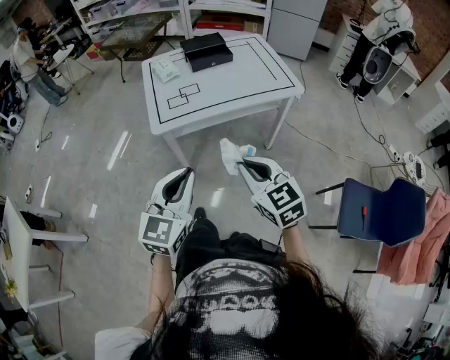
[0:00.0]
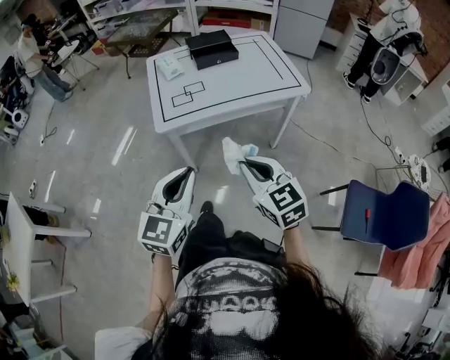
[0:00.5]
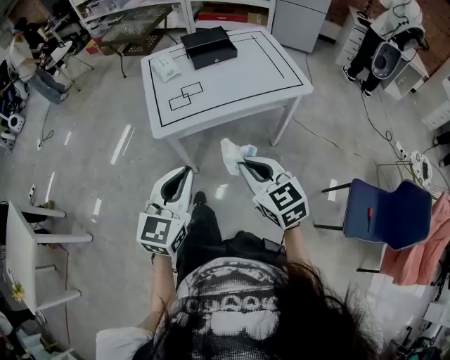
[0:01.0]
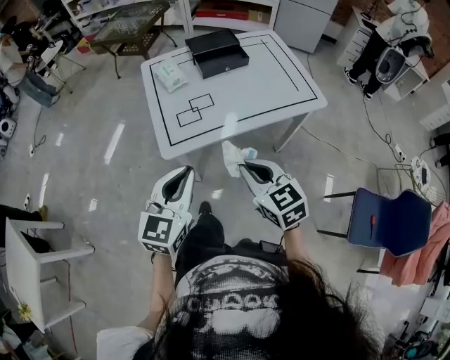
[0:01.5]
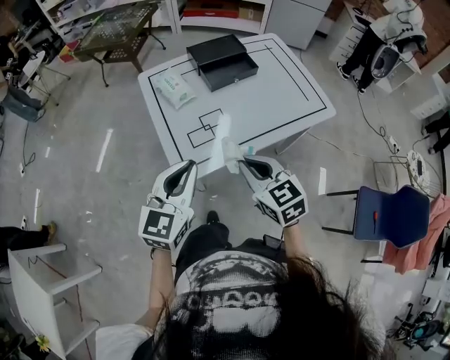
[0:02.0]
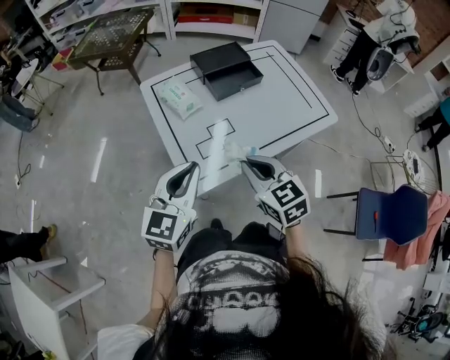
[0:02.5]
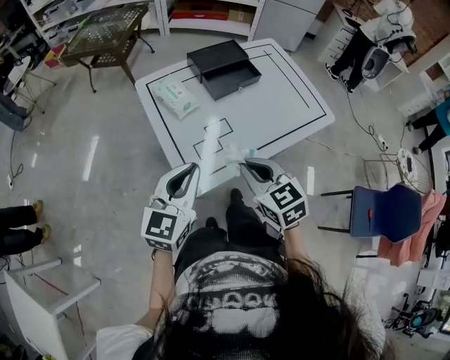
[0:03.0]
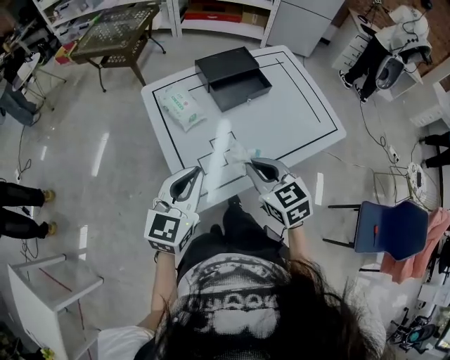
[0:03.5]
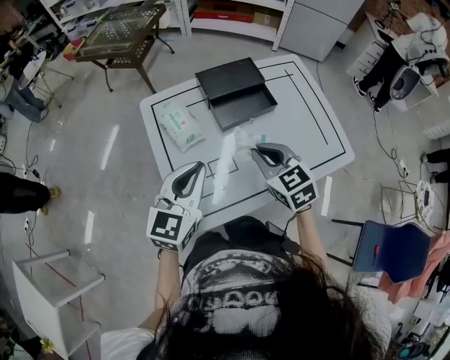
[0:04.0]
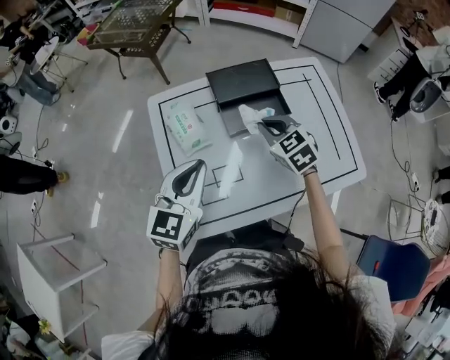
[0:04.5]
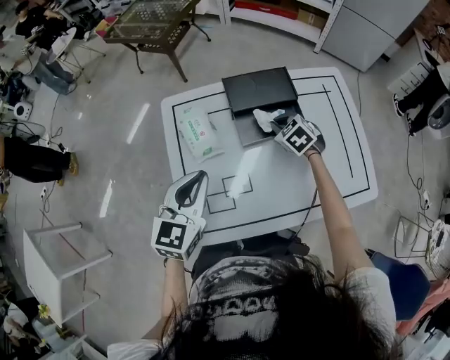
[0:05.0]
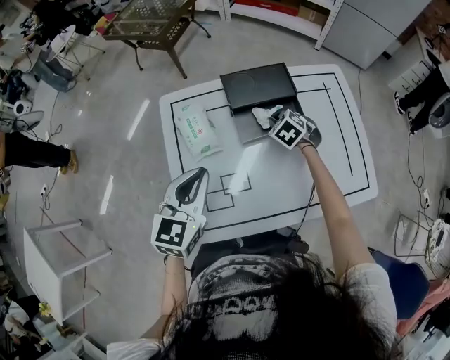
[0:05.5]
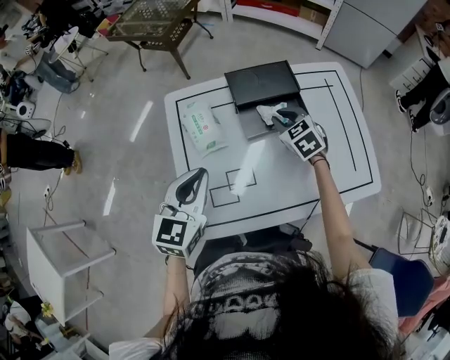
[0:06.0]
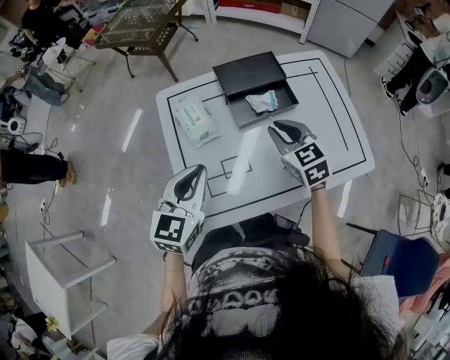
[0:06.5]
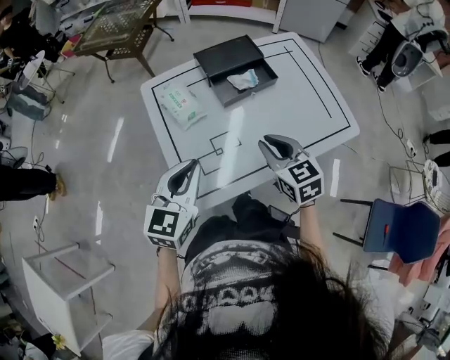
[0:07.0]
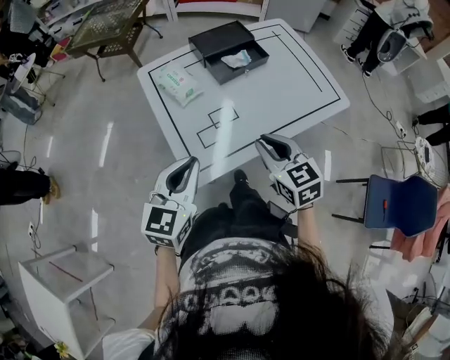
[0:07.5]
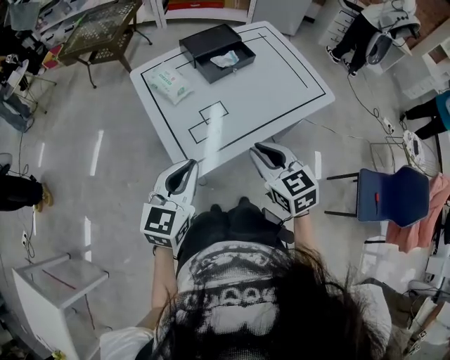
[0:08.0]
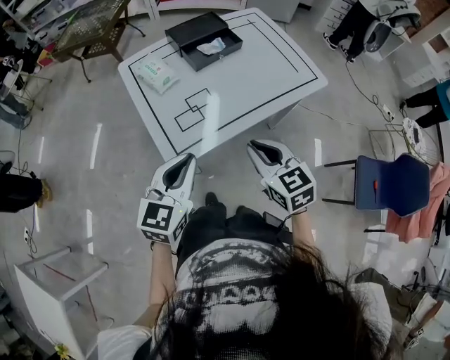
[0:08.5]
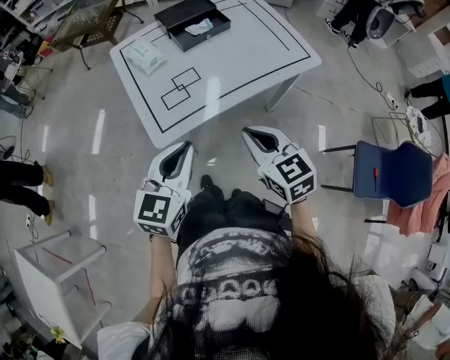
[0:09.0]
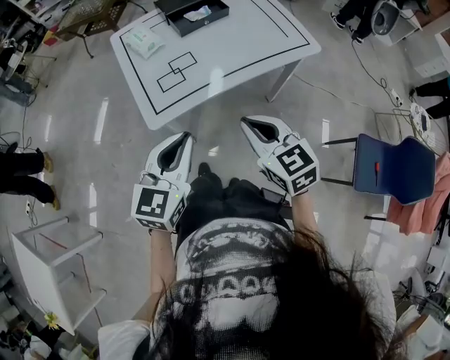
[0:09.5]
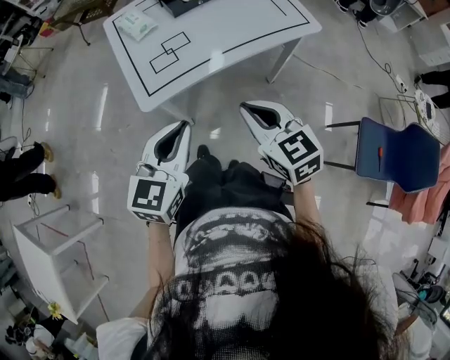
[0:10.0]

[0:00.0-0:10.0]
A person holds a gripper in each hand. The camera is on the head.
0:00.0 to 0:02.0: Both grippers travel together forward and to the left, some 35 cm.
0:02.0 to 0:04.0: The two grippers go approximately 25 cm forward.
0:04.0 to 0:06.0: The right gripper travels forward and downward by roughly 20 cm. The left gripper is displaced forward by about 5 cm.
0:06.0 to 0:08.0: The left gripper travels backward by about 25 cm, and turns by roughly 20 degrees, while the right gripper heads backward, covering about 40 cm, and turns by approximately 30 degrees.
0:08.0 to 0:10.0: The left gripper moves to the right and backward, roughly 20 cm; the right gripper moves backward and to the right, approximately 20 cm.

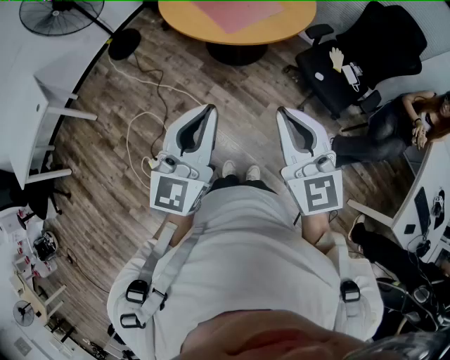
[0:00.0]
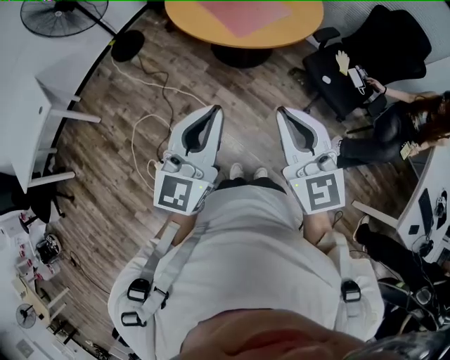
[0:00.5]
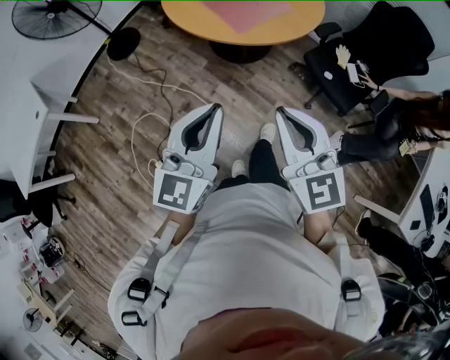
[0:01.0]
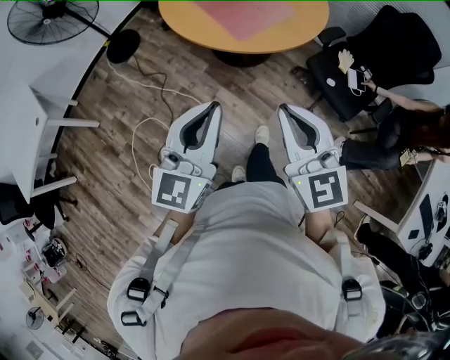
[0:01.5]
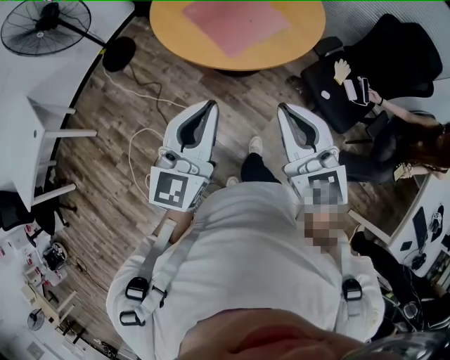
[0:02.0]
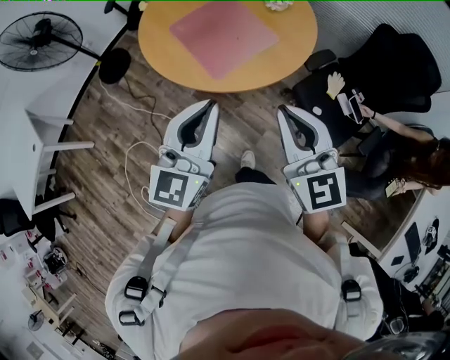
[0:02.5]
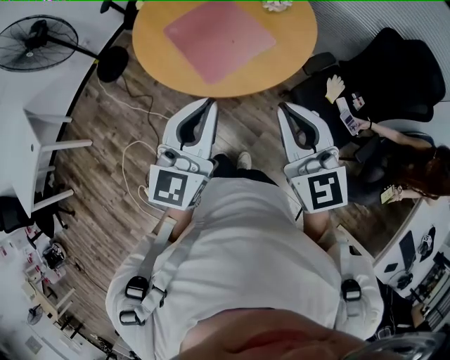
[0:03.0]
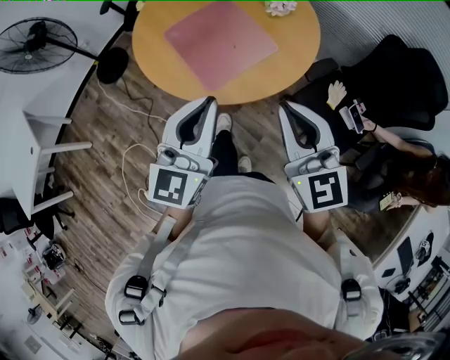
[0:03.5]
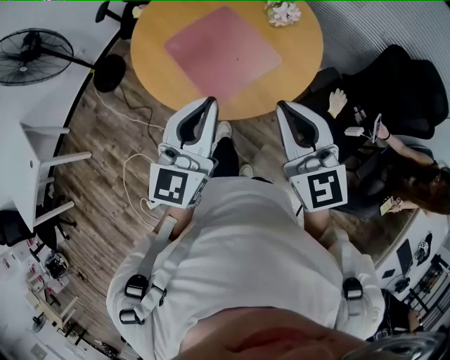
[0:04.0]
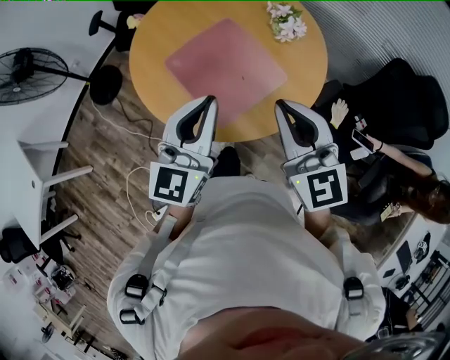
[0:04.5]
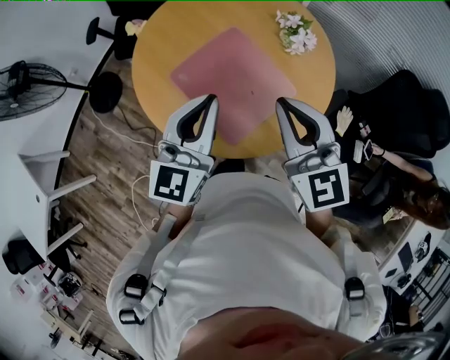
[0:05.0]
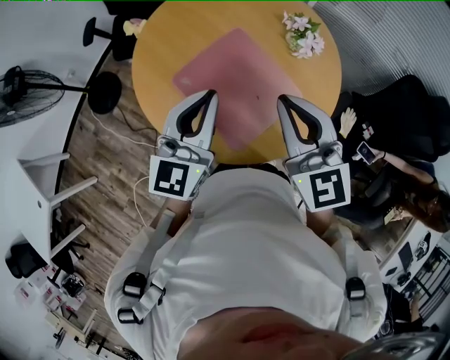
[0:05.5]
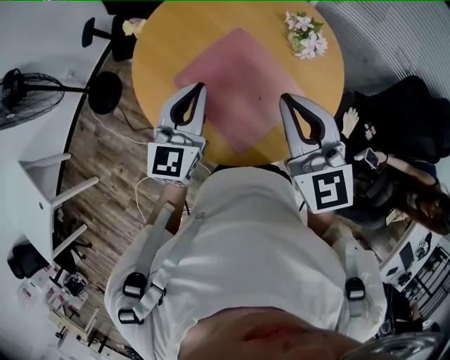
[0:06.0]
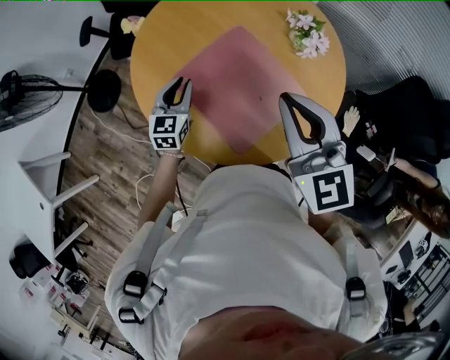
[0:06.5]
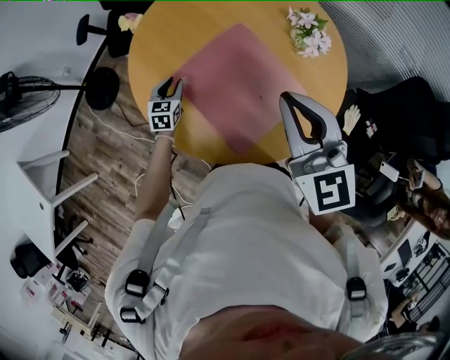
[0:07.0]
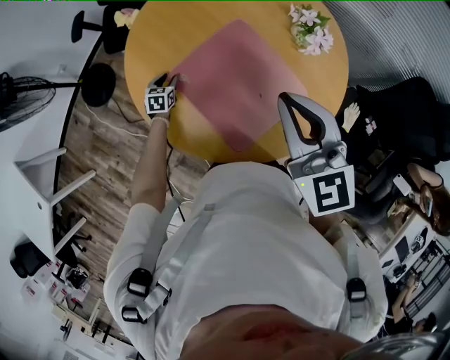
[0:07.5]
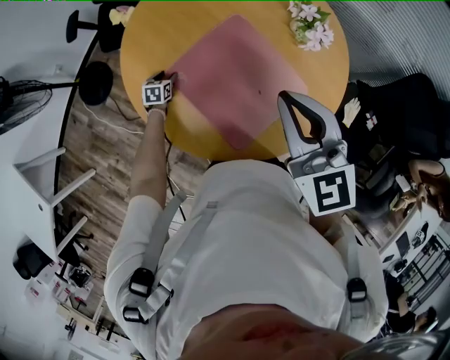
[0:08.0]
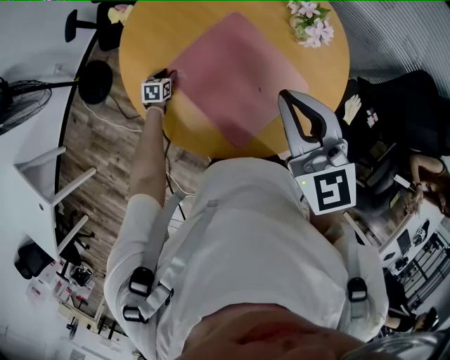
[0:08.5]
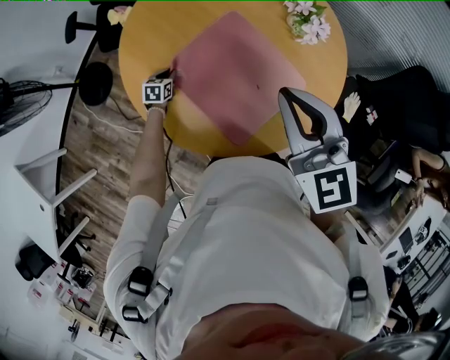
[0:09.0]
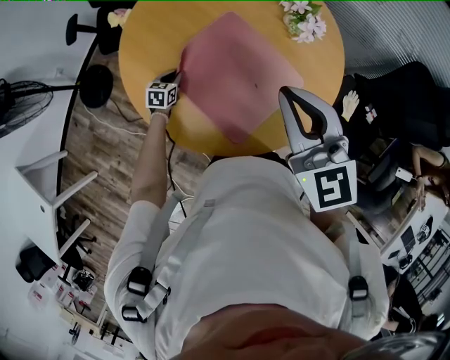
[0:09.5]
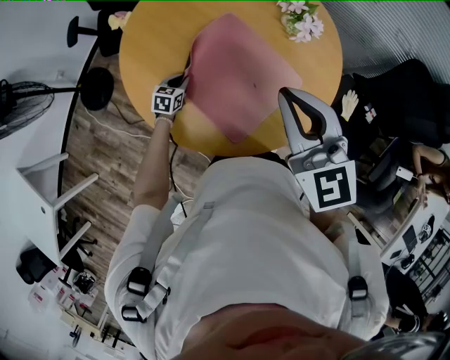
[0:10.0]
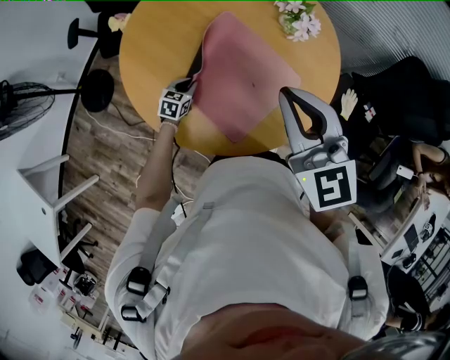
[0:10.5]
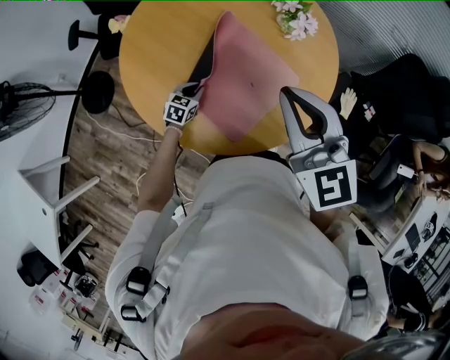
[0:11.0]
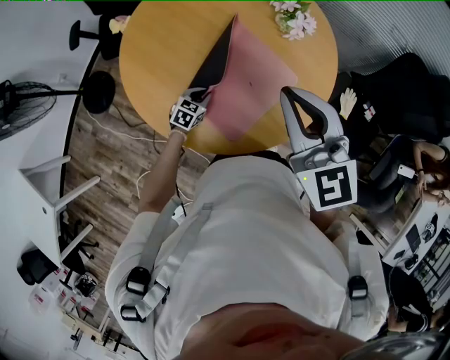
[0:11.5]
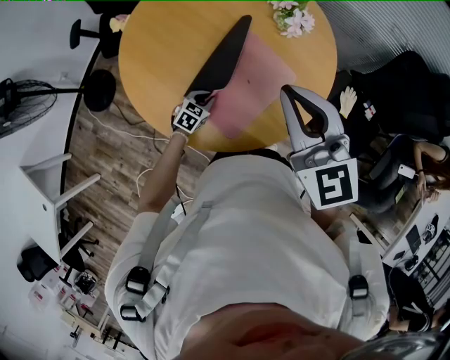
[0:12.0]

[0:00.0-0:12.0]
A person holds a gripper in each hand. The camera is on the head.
0:00.0 to 0:02.0: Both grippers move forward, roughly 20 cm.
0:02.0 to 0:04.0: Both grippers move forward, approximately 25 cm.
0:04.0 to 0:06.0: Both grippers move forward and to the left, about 30 cm.
0:06.0 to 0:08.0: The right gripper shifts by roughly 5 cm, while the left gripper goes some 40 cm downward, angles its fingers downward, by about 50 degrees, and opens its fingers.
0:08.0 to 0:10.0: The left gripper is displaced to the right and upward by some 10 cm, and closes.
0:10.0 to 0:12.0: The left gripper moves to the right and backward, about 15 cm, and changes its angle by about 20 degrees.

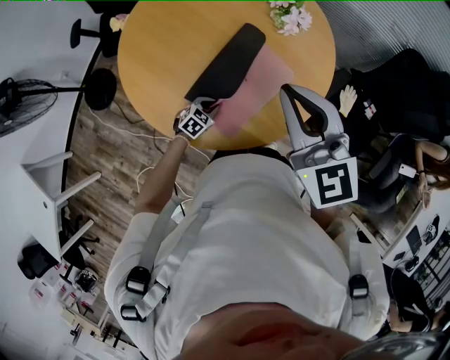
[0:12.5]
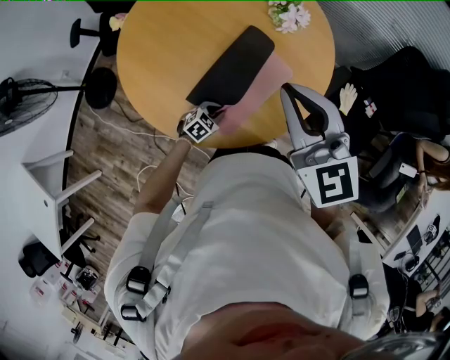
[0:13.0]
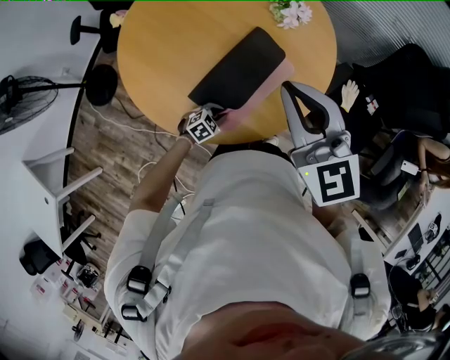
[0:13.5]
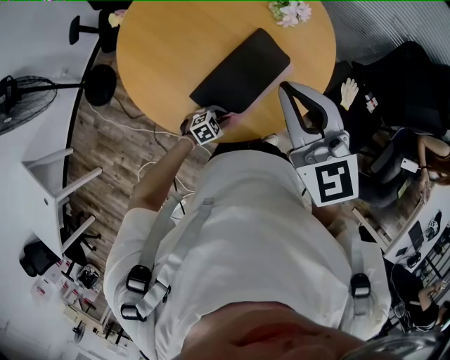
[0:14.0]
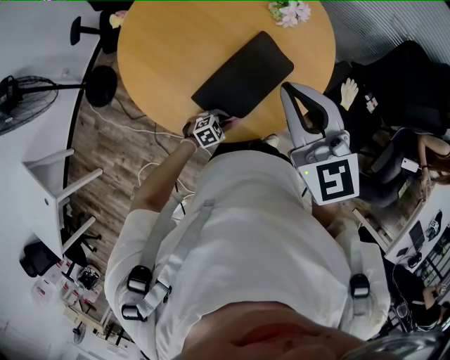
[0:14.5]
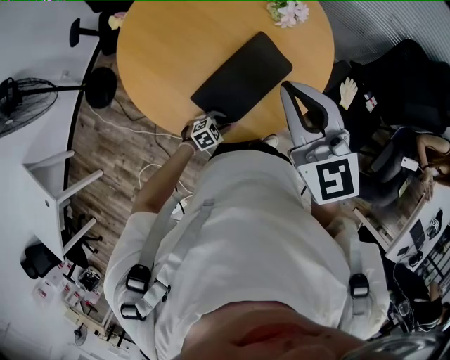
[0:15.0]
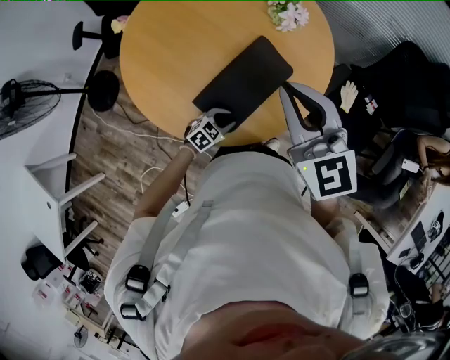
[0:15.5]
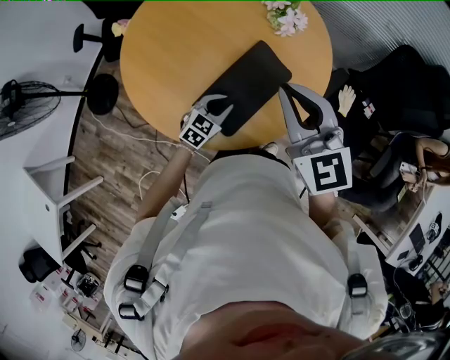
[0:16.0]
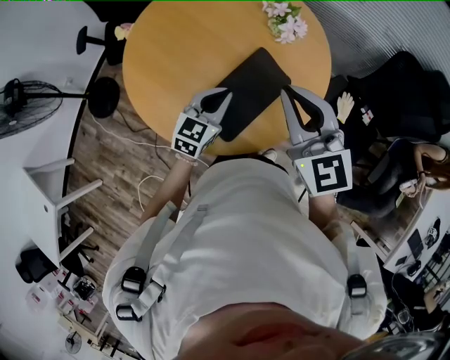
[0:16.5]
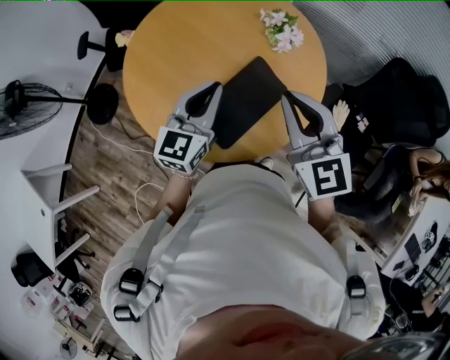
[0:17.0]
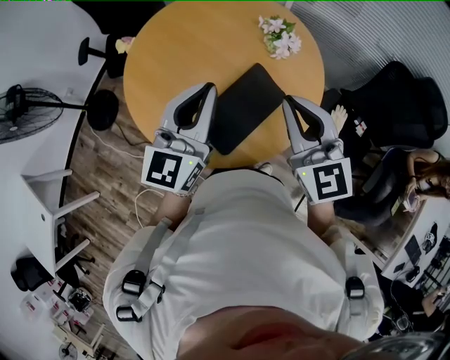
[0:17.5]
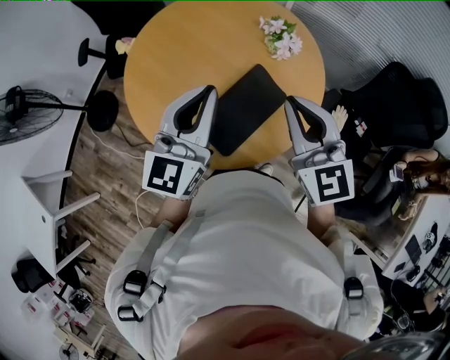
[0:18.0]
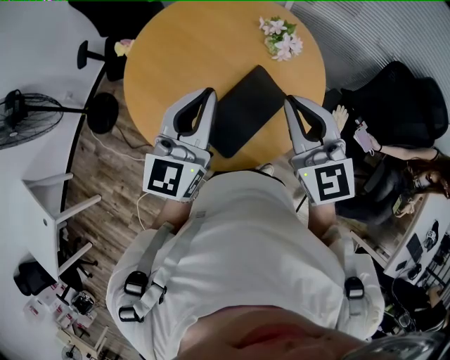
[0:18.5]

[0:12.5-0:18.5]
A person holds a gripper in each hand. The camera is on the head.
0:12.5 to 0:14.5: The left gripper travels to the right and backward by roughly 10 cm, and rotates about 20 degrees.
0:14.5 to 0:16.5: The left gripper heads upward and forward, covering approximately 30 cm, and angles its fingers upward, by roughly 40 degrees.
0:16.5 to 0:18.5: The left gripper is displaced upward by approximately 20 cm, and swivels about 30 degrees.
